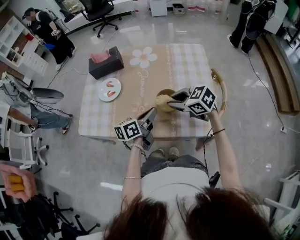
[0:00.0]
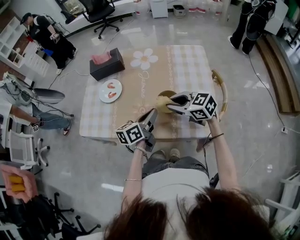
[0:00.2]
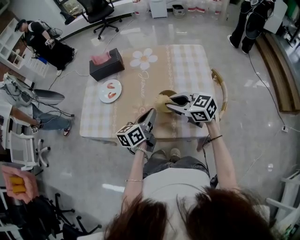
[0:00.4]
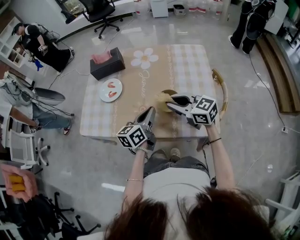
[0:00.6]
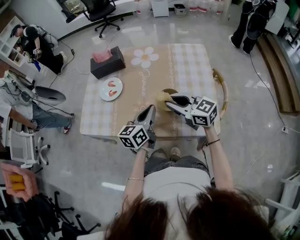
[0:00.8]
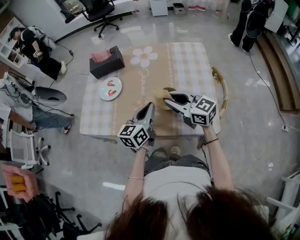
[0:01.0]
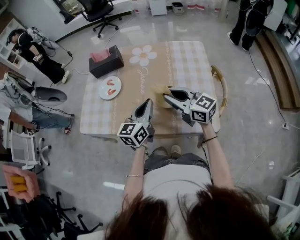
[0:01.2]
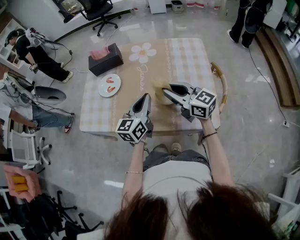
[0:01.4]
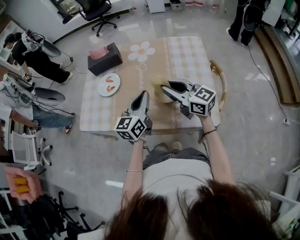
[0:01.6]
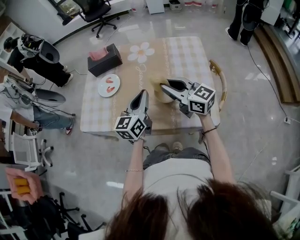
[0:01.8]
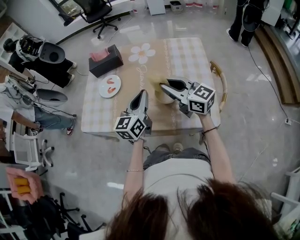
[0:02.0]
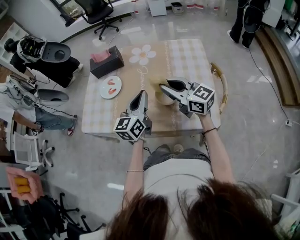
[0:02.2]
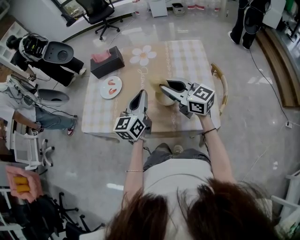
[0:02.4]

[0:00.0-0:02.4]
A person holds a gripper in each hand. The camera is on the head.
0:00.0 to 0:01.2: The two grippers go roughly 5 cm upward. The right gripper angles its fingers upward, by about 30 degrees; the left gripper rotates approximately 30 degrees.
0:01.2 to 0:02.4: The grippers make only small movements.

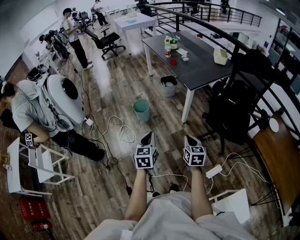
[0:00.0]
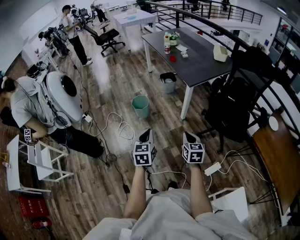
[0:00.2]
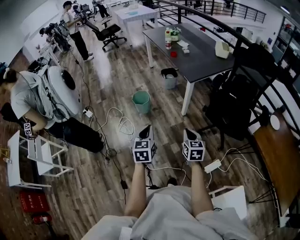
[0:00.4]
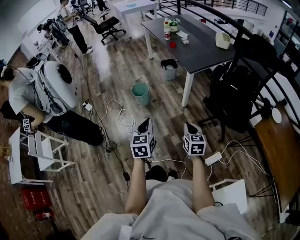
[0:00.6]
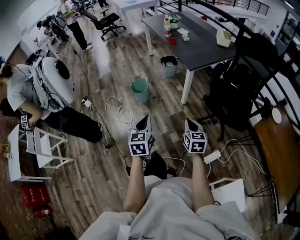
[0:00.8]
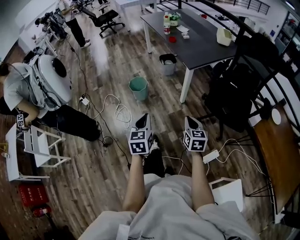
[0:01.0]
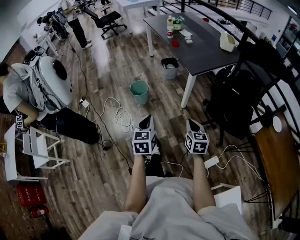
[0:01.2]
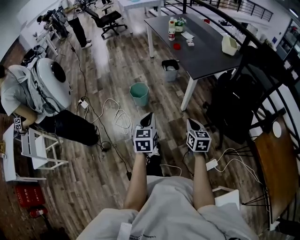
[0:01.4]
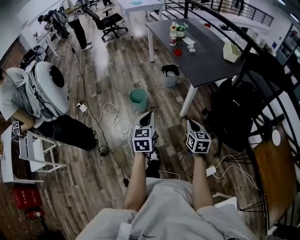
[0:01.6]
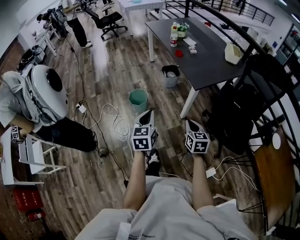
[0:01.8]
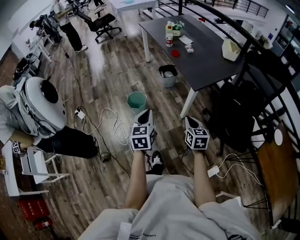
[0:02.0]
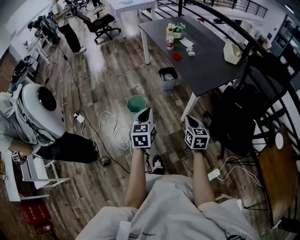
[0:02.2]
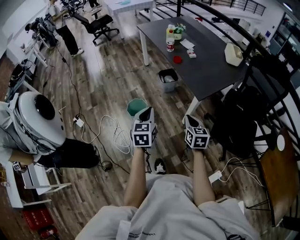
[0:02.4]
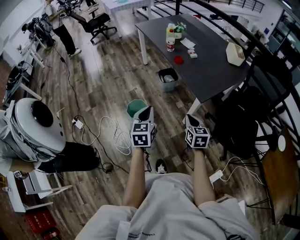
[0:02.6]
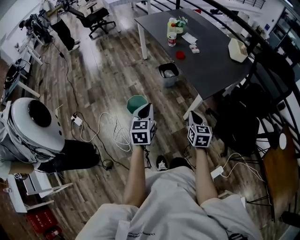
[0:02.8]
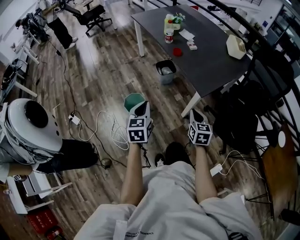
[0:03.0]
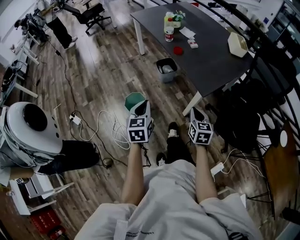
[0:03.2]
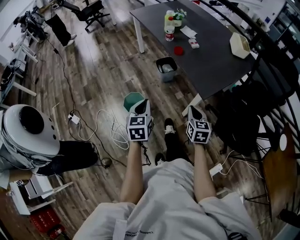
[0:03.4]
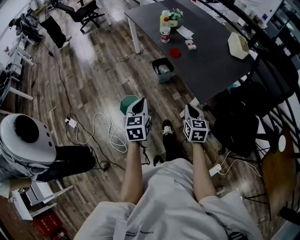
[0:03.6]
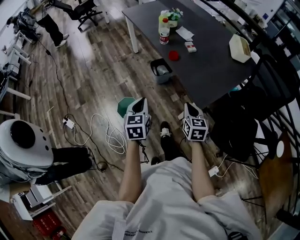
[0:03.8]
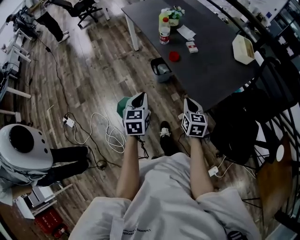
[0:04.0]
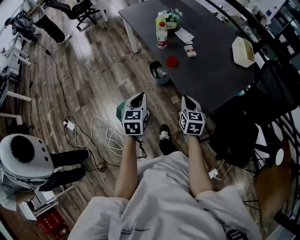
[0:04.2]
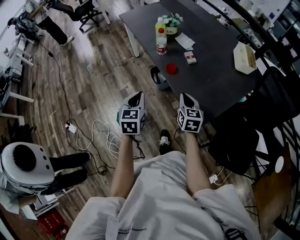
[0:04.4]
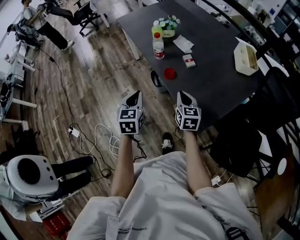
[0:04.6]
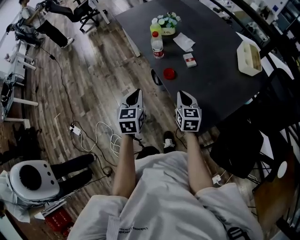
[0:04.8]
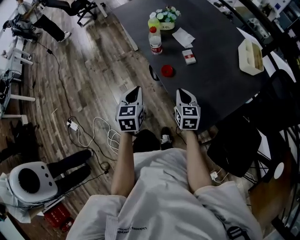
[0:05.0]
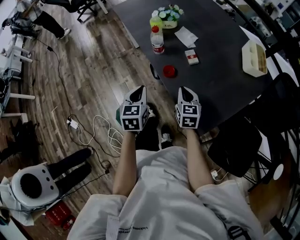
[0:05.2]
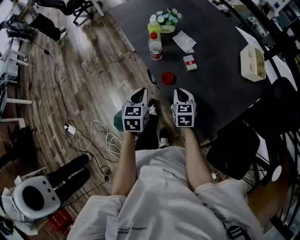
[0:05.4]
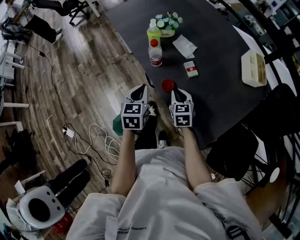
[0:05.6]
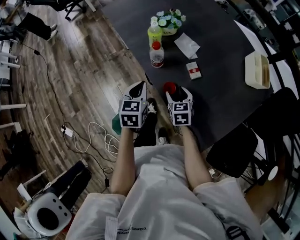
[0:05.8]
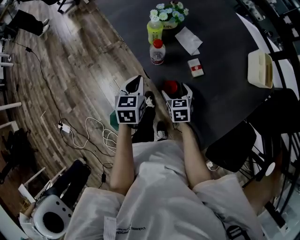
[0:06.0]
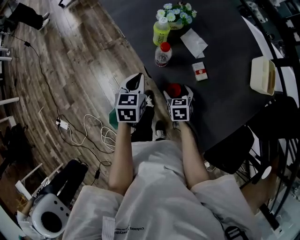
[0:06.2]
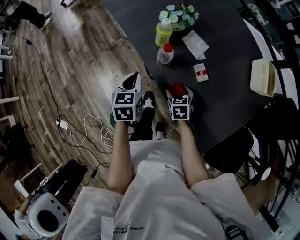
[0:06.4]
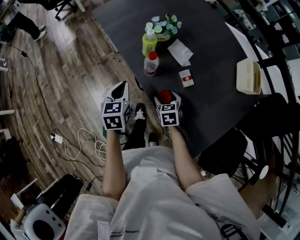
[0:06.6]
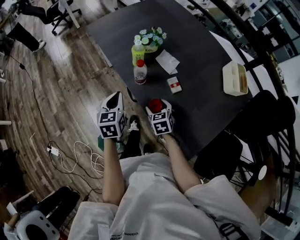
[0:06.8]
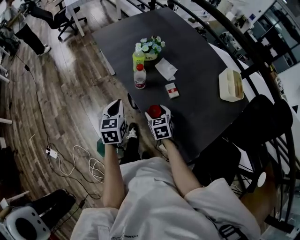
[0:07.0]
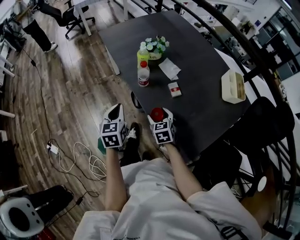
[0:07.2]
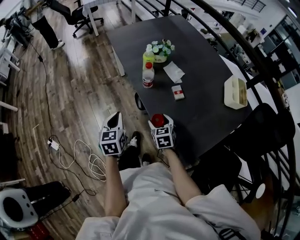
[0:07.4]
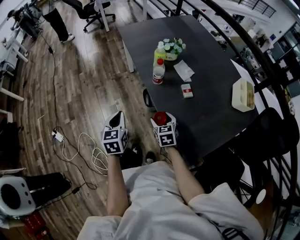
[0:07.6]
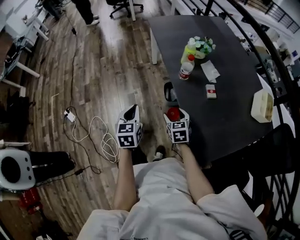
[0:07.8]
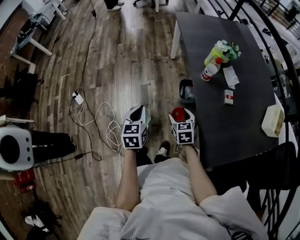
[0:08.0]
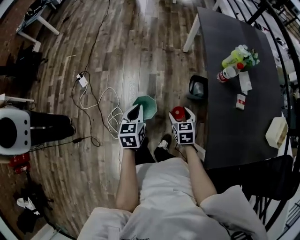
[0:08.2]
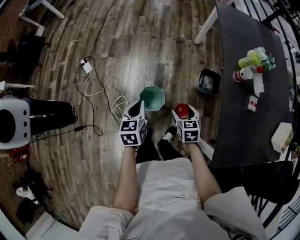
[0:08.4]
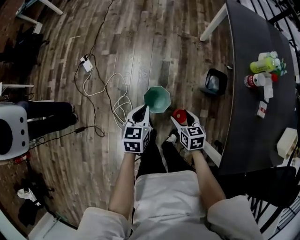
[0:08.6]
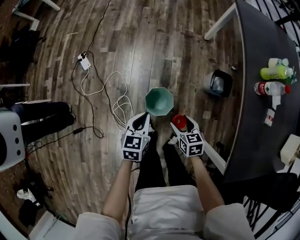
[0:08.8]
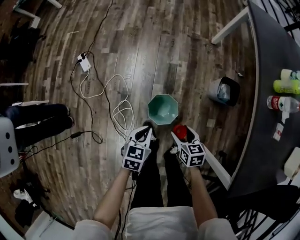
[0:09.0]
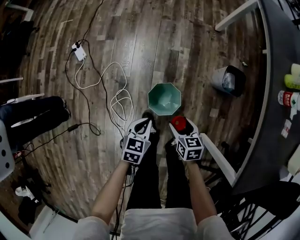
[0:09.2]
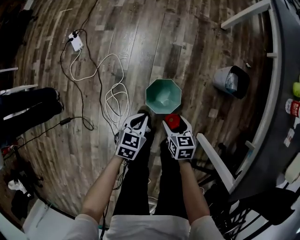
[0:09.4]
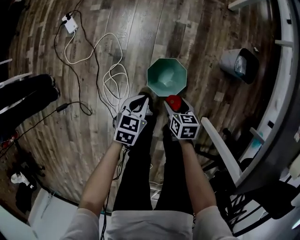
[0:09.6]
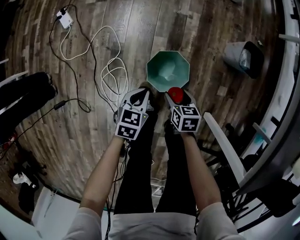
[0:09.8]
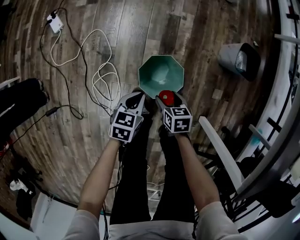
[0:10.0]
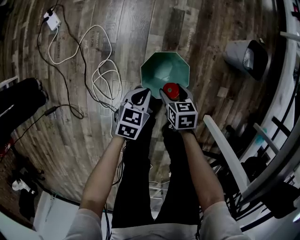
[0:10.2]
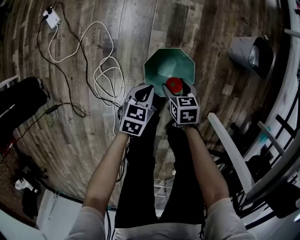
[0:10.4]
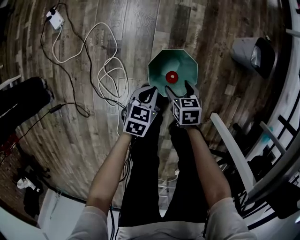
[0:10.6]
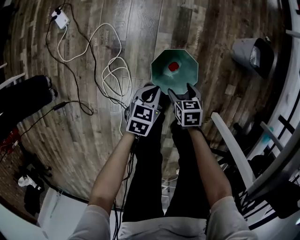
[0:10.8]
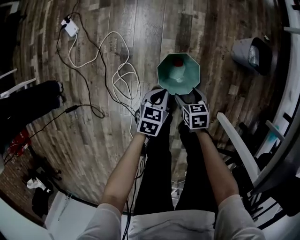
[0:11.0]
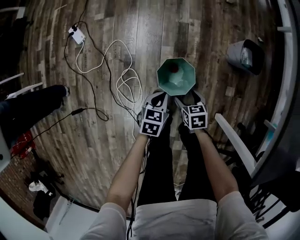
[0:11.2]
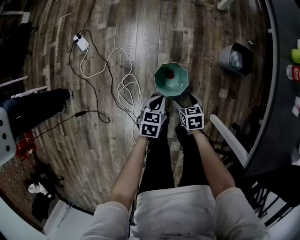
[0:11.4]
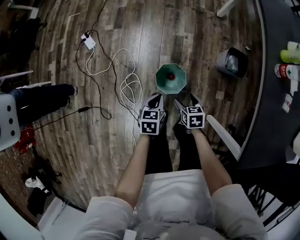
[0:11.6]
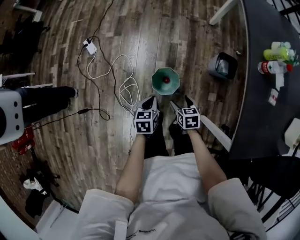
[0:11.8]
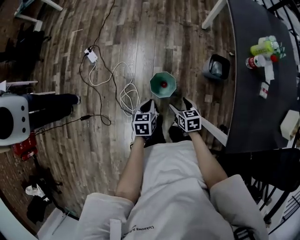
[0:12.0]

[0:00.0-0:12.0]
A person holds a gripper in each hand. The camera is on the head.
0:00.0 to 0:01.6: The two grippers go some 15 cm forward.
0:01.6 to 0:03.0: Both grippers travel together forward, roughly 25 cm.
0:03.0 to 0:04.4: The two grippers go some 30 cm forward.
0:04.4 to 0:06.0: The right gripper moves forward and downward, approximately 25 cm, changes its angle by about 20 degrees, and opens up. Meanwhile the left gripper heads forward, covering roughly 25 cm.
0:06.0 to 0:07.6: The left gripper shifts some 20 cm backward and to the left, while the right gripper goes approximately 15 cm backward, upward and to the left.
0:07.6 to 0:09.0: The right gripper shifts by some 40 cm, and changes its angle by roughly 30 degrees. The left gripper changes place by some 40 cm.
0:09.0 to 0:10.4: Both grippers move downward, some 30 cm.
0:10.4 to 0:12.0: Both grippers travel together upward, roughly 40 cm.

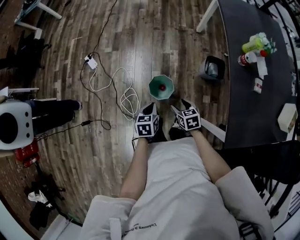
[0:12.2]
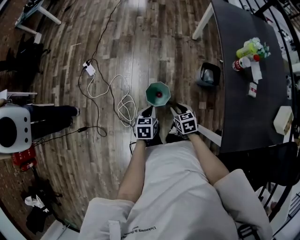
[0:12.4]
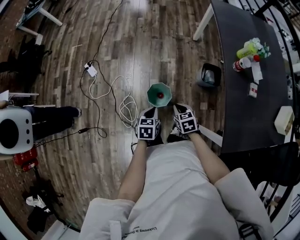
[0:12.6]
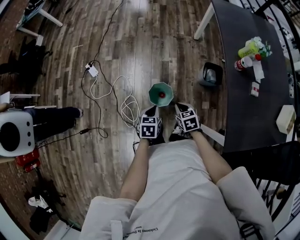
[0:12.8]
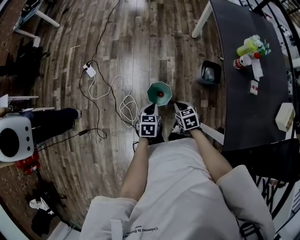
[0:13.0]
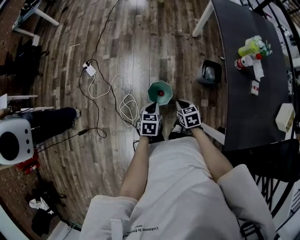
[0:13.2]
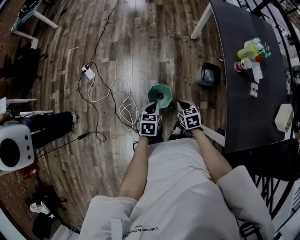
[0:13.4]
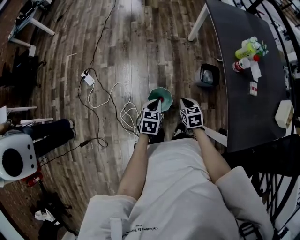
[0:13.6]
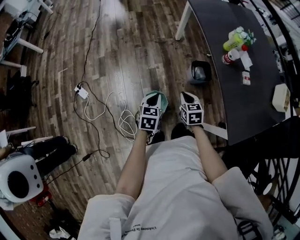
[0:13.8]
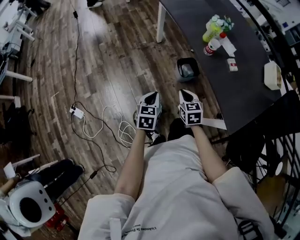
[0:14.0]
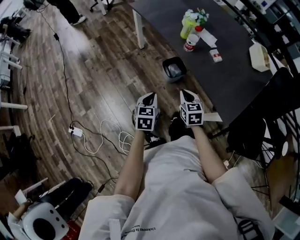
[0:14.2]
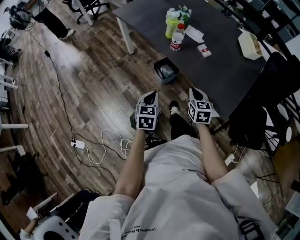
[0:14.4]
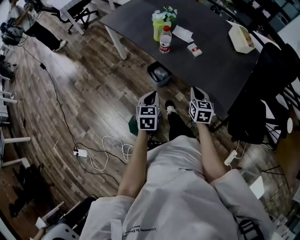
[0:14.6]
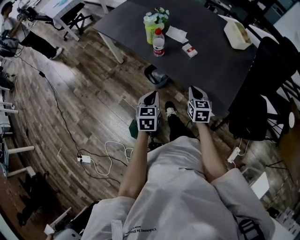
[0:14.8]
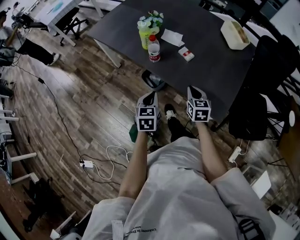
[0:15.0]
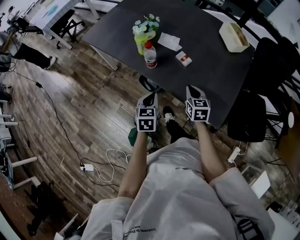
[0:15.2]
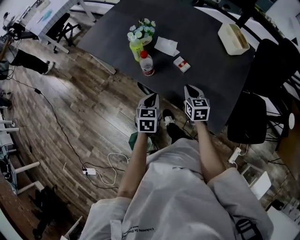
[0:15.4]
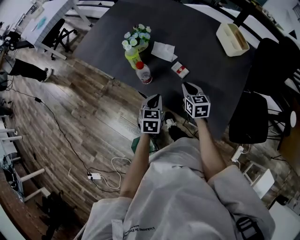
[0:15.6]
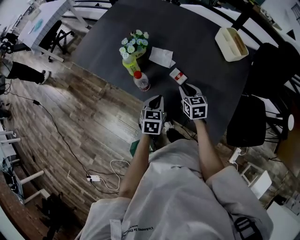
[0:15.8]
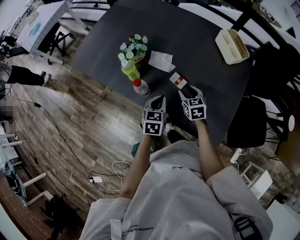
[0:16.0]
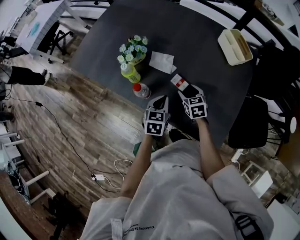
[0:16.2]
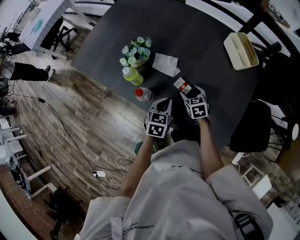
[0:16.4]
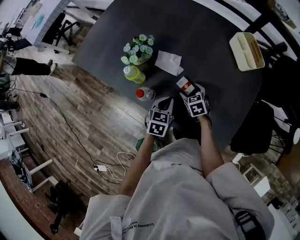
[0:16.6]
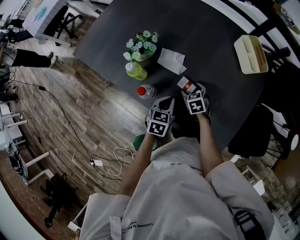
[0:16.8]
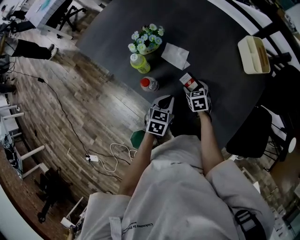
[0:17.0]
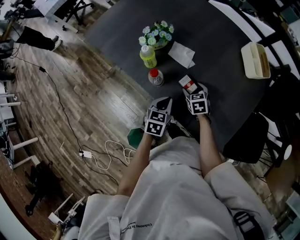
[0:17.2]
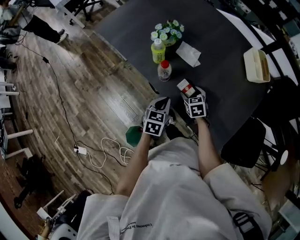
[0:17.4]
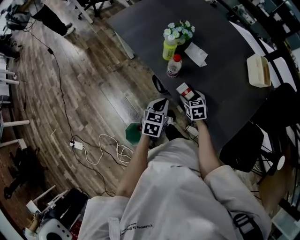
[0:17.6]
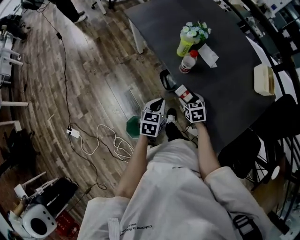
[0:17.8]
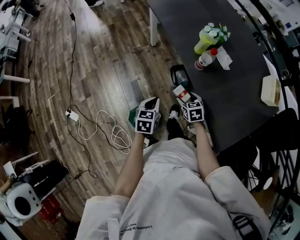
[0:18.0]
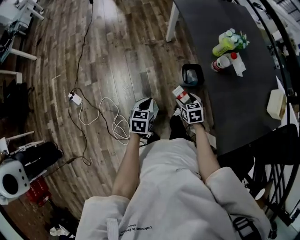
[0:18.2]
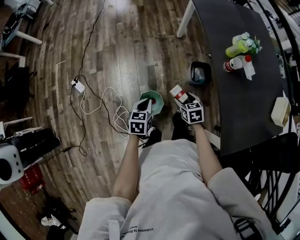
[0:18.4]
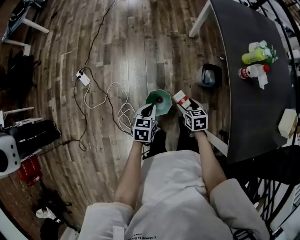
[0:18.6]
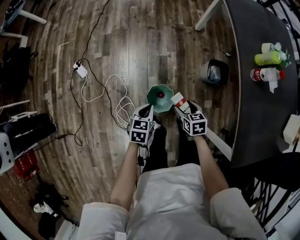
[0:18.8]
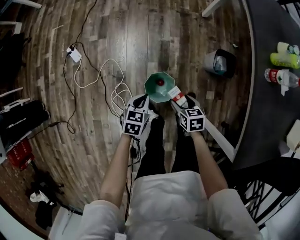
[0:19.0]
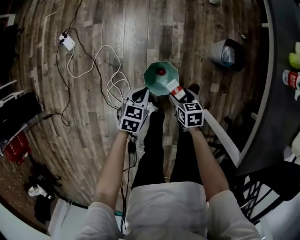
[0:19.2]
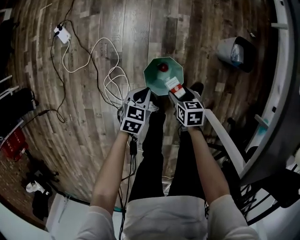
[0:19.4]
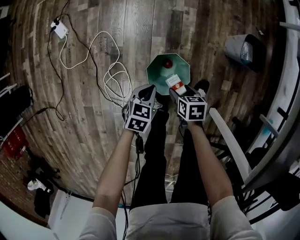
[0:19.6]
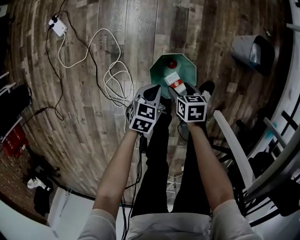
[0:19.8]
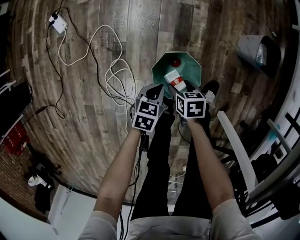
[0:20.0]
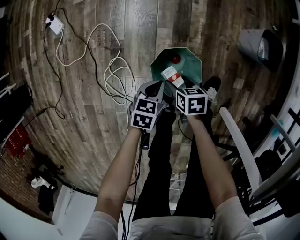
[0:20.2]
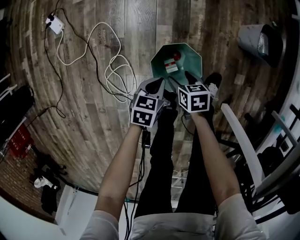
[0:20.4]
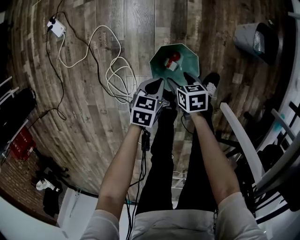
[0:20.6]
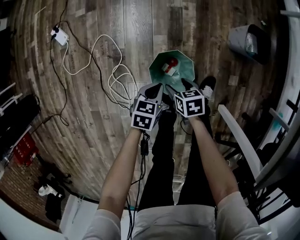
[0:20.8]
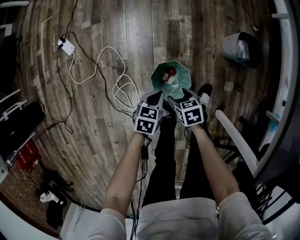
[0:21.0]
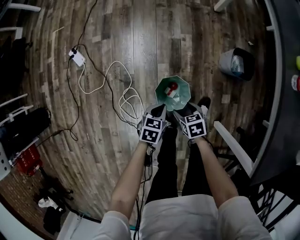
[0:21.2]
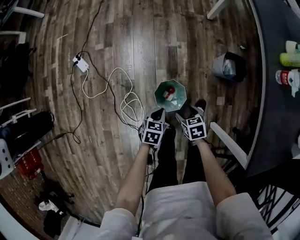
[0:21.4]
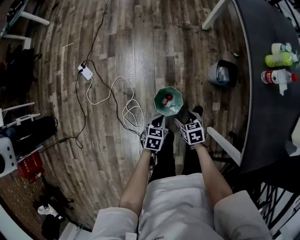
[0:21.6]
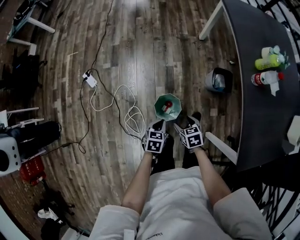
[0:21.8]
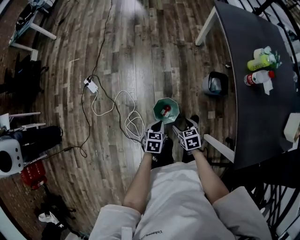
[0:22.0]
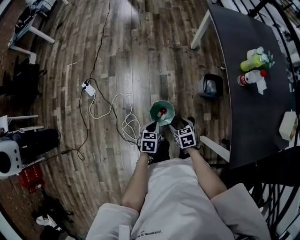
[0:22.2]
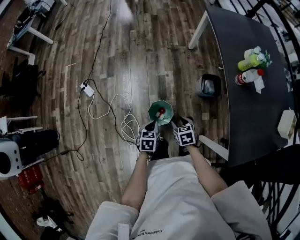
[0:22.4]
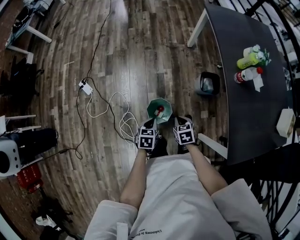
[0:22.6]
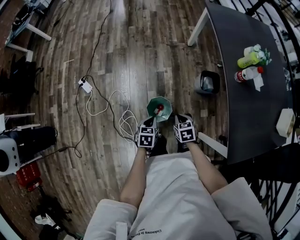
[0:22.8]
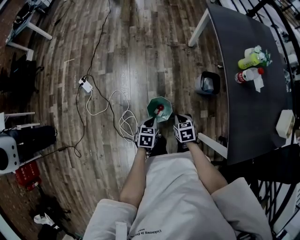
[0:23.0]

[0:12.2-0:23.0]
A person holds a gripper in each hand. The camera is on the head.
0:12.2 to 0:13.8: The right gripper changes place by roughly 15 cm, swivels some 30 degrees, and closes. Meanwhile the left gripper changes place by some 15 cm, and rotates approximately 30 degrees.
0:13.8 to 0:15.2: The right gripper ends up about 35 cm from where it was, and swivels some 50 degrees. Meanwhile the left gripper ends up roughly 35 cm from where it was, and swivels roughly 30 degrees.
0:15.2 to 0:16.8: The left gripper goes some 20 cm forward and to the right. The right gripper goes about 25 cm forward and downward, changes its angle by some 30 degrees, and opens its fingers.
0:16.8 to 0:18.4: The two grippers travel together, roughly 50 cm. The left gripper rotates approximately 60 degrees. Meanwhile the right gripper swivels approximately 40 degrees.
0:18.4 to 0:20.0: The two grippers go some 50 cm downward. The right gripper swivels about 30 degrees.
0:20.0 to 0:21.4: Both grippers move upward, roughly 20 cm.
0:21.4 to 0:23.0: Both grippers move upward, roughly 15 cm. The right gripper closes.
